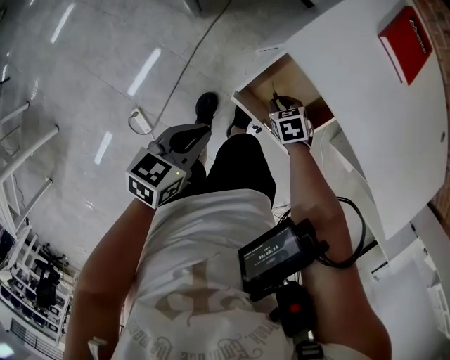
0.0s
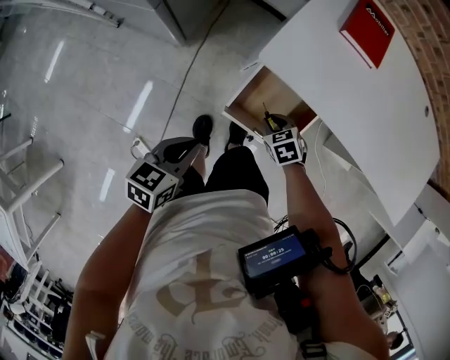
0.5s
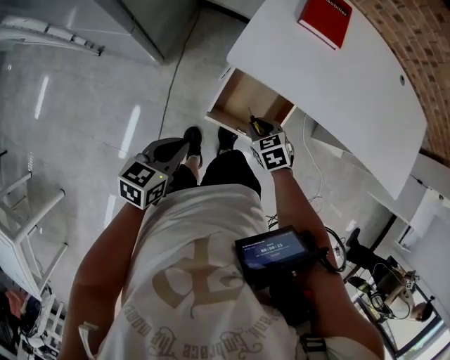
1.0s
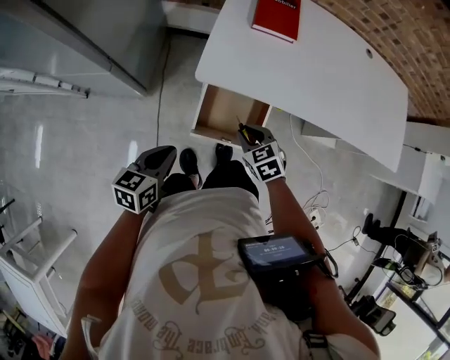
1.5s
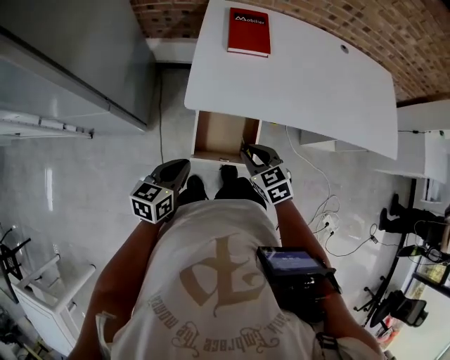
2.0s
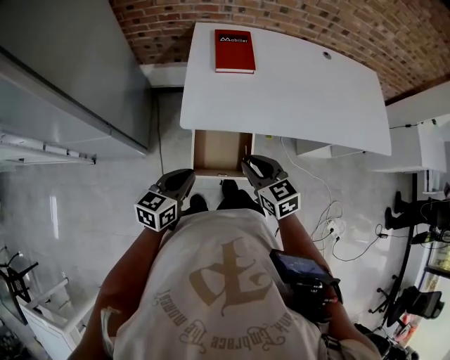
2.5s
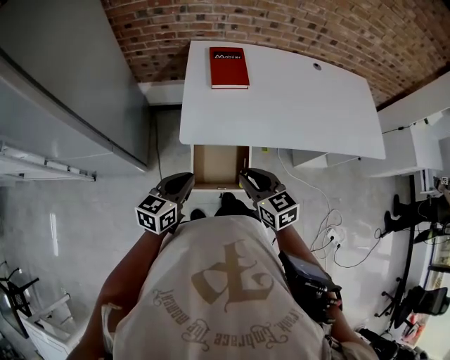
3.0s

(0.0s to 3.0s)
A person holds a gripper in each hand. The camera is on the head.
0.0s - 1.5s: The right gripper shifts roughly 20 cm upward, and swivels some 30 degrees. Meanwhile the left gripper shifts roughly 10 cm upward.
1.5s - 3.0s: The left gripper heads upward, to the right and forward, covering approximately 10 cm, and swivels about 20 degrees. The right gripper moves upward, some 15 cm, and swivels approximately 30 degrees.

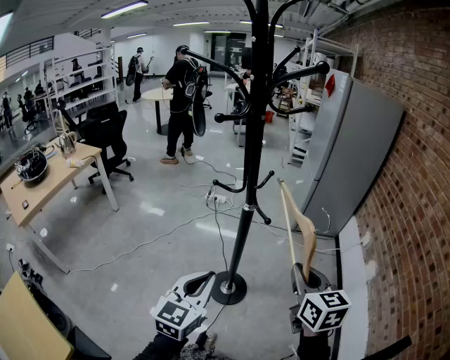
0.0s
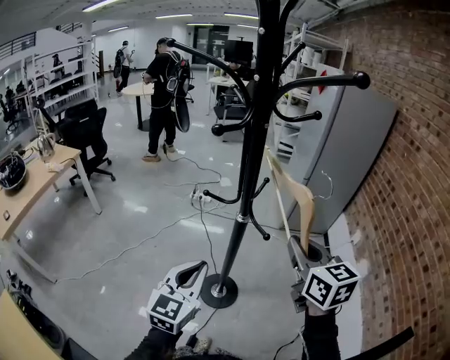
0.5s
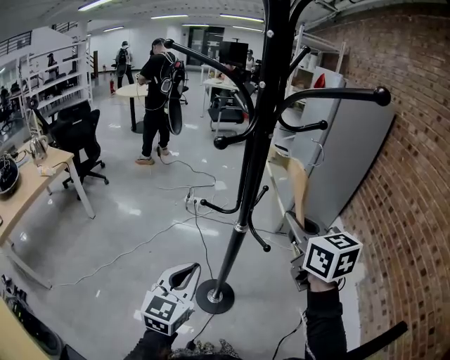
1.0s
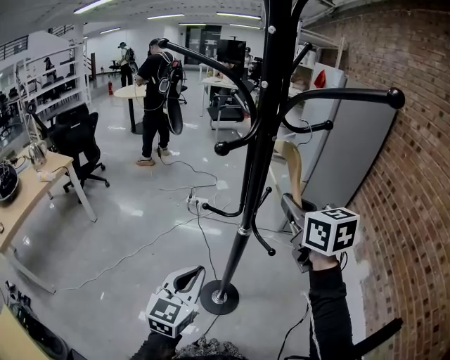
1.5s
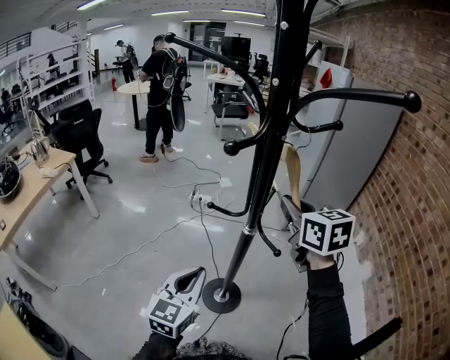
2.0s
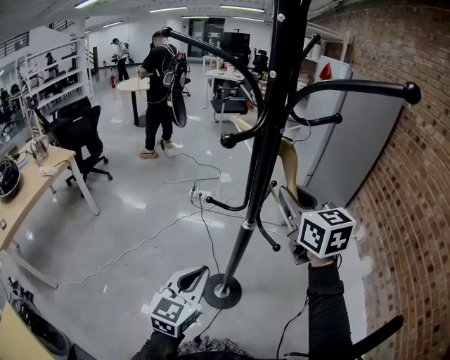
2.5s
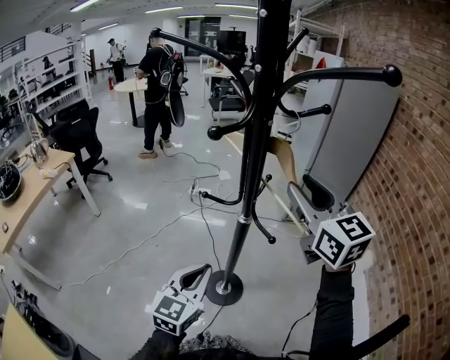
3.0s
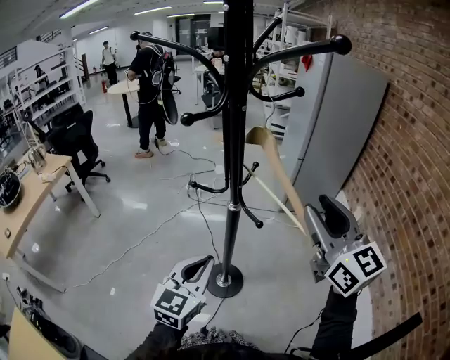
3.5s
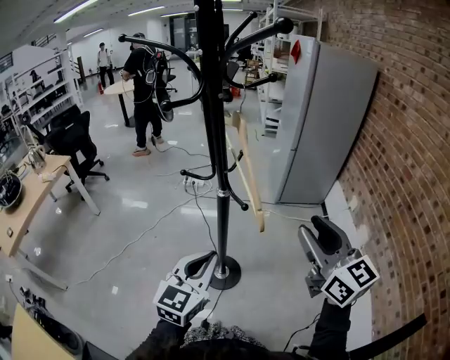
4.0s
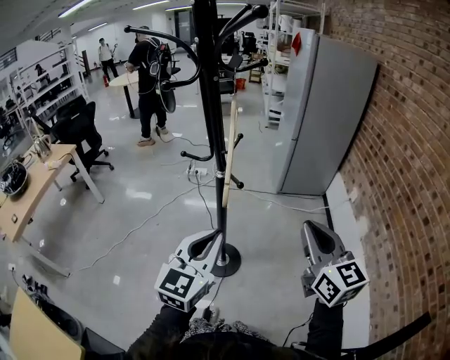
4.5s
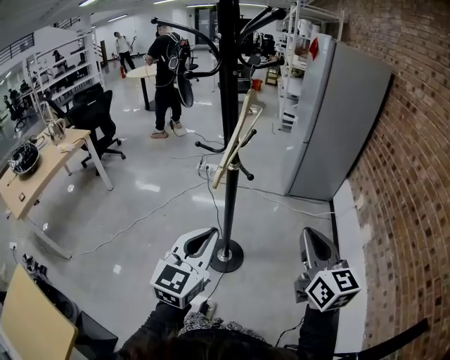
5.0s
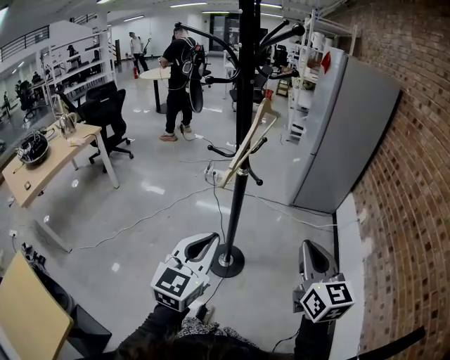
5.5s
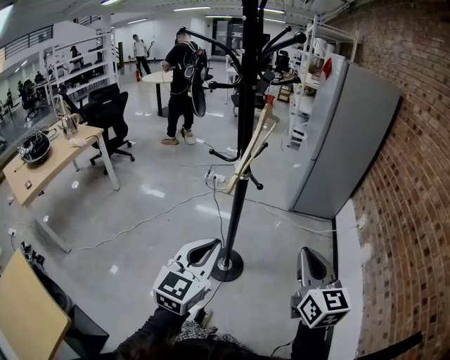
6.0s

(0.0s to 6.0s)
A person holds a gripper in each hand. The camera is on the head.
0.0s - 2.0s: The left gripper moves forward and to the left, some 15 cm, while the right gripper heads forward, to the left and upward, covering some 30 cm.
2.0s - 4.0s: The right gripper goes about 25 cm backward and to the right, swivels approximately 20 degrees, and opens up; the left gripper goes some 15 cm to the right and backward.
4.0s - 6.0s: The right gripper moves backward and downward, some 10 cm, and closes its fingers. The left gripper shifts about 10 cm backward.

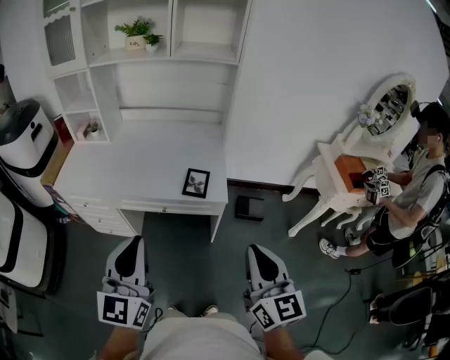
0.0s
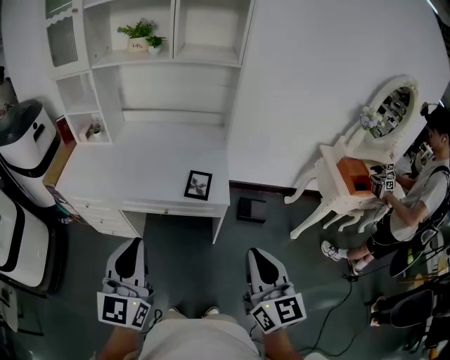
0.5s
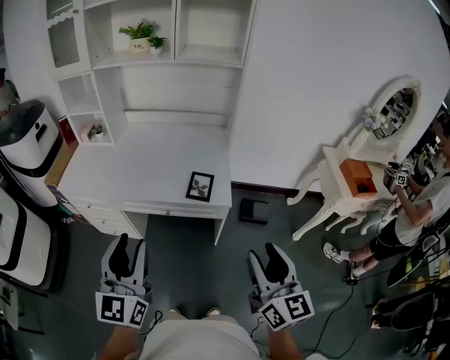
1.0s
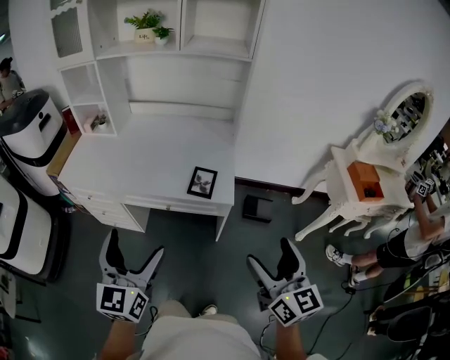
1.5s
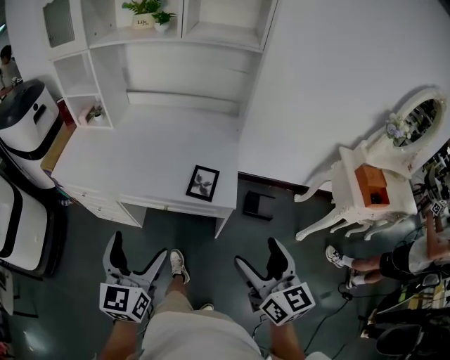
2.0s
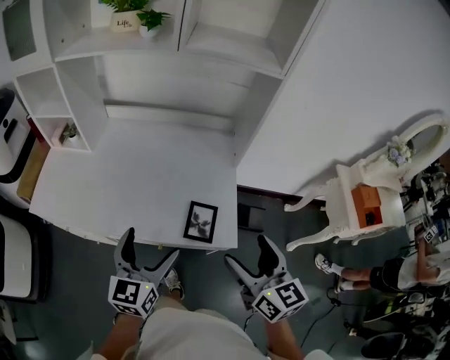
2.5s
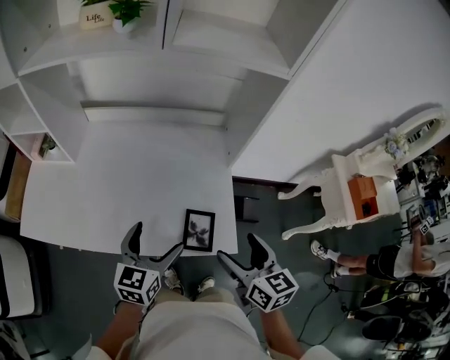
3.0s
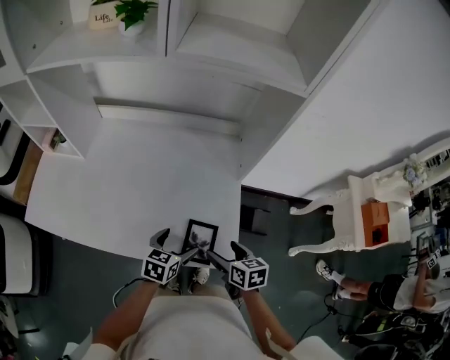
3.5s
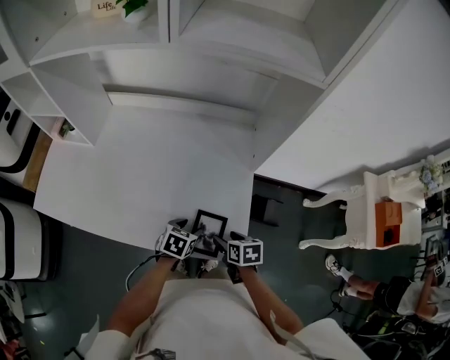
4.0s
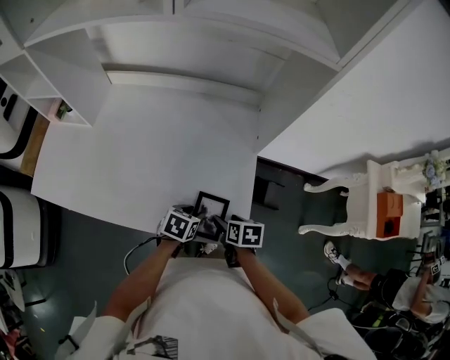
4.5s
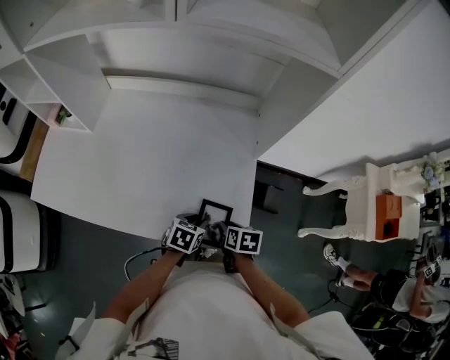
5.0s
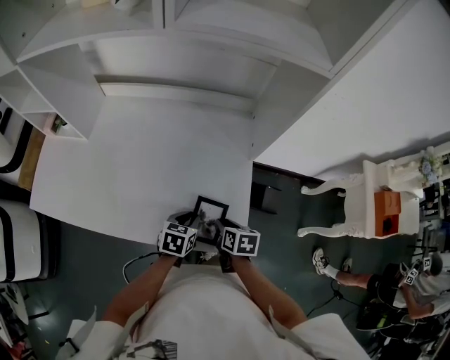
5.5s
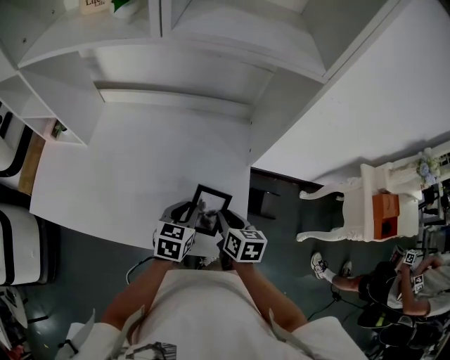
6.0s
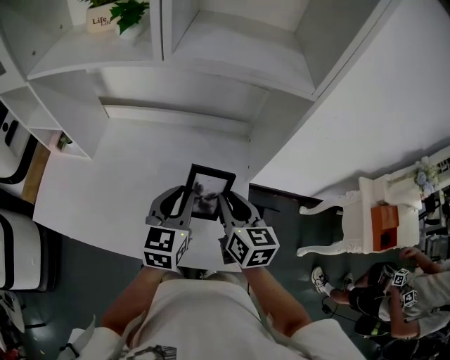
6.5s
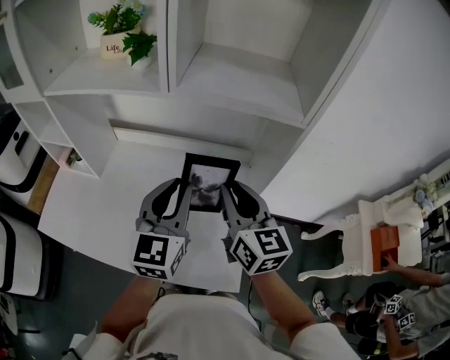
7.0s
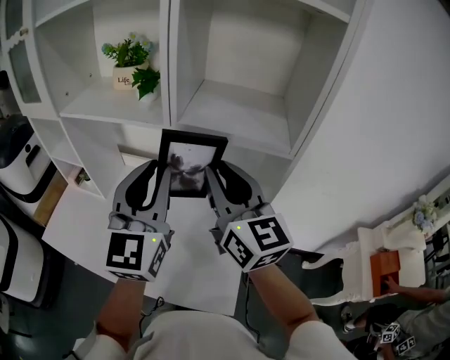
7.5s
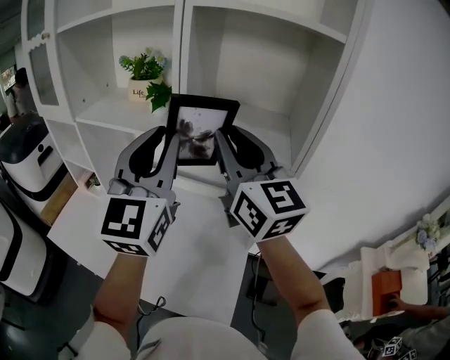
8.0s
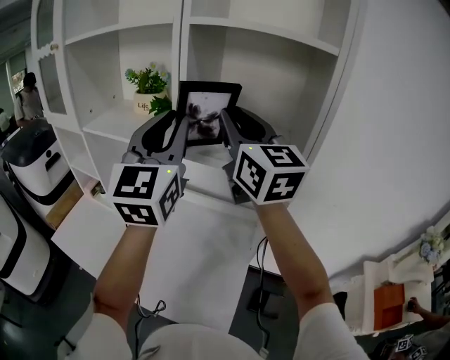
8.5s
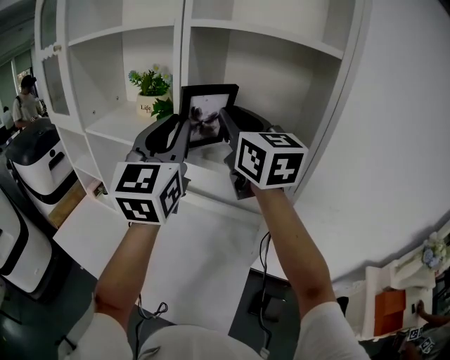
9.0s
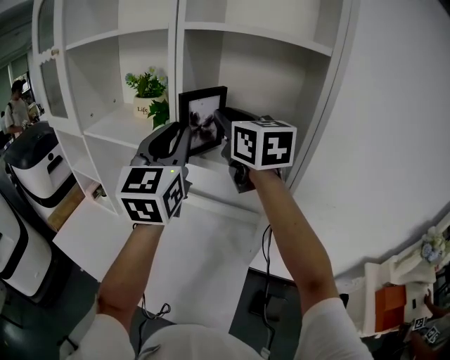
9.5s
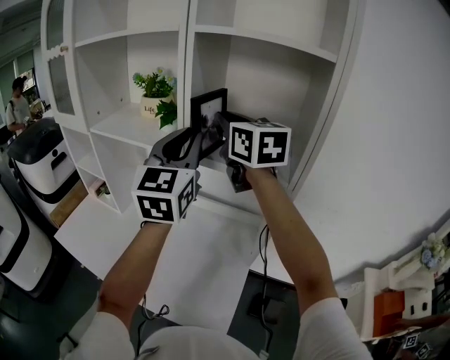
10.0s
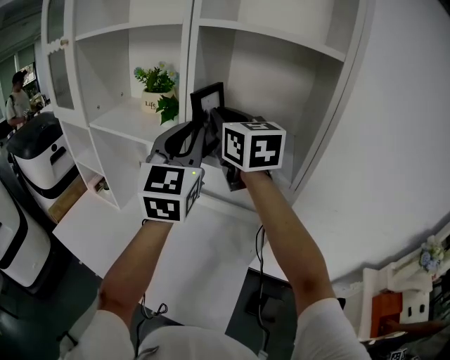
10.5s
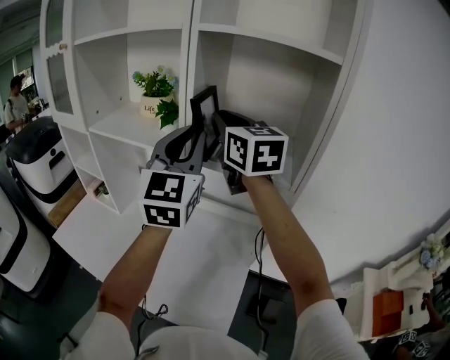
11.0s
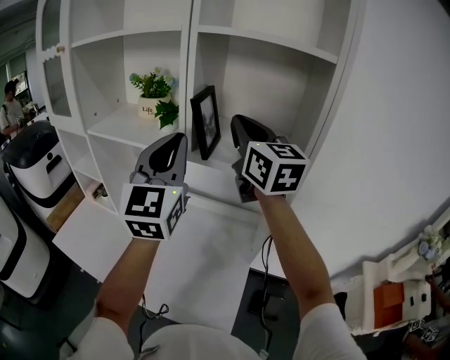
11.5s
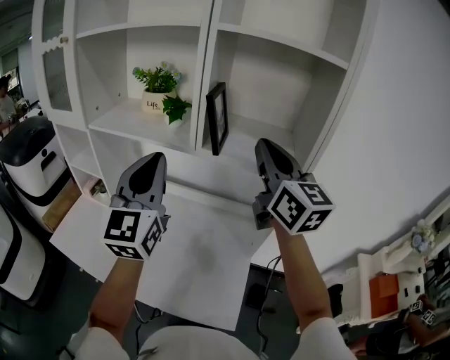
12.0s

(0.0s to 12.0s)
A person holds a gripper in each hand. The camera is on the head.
0.0s - 2.0s: Both grippers move forward and downward, about 15 cm. The right gripper opens. Meanwhile the left gripper opens.
2.0s - 4.0s: Both grippers travel together forward and downward, approximately 50 cm. The left gripper angles its fingers downward, by some 50 degrees, and closes; the right gripper points its fingers about 50 degrees further downward.
4.0s - 6.0s: Both grippers move upward and forward, roughly 10 cm. The left gripper changes its angle by about 20 degrees, while the right gripper closes up.
6.0s - 8.0s: Both grippers travel together upward, some 50 cm. The left gripper tilts its fingers some 60 degrees upward; the right gripper points its fingers about 50 degrees further upward.
8.0s - 10.0s: The left gripper is displaced forward by about 5 cm; the right gripper travels forward by about 10 cm.
10.0s - 12.0s: The right gripper travels backward by roughly 10 cm. The left gripper goes some 10 cm to the left and backward.

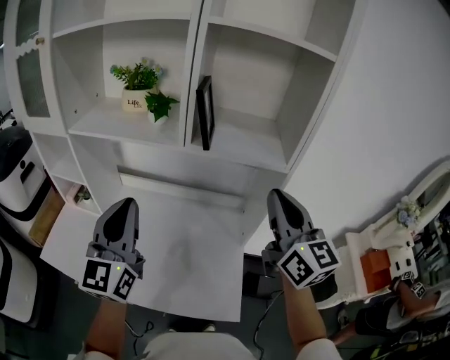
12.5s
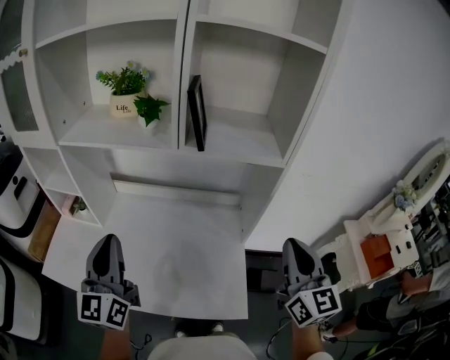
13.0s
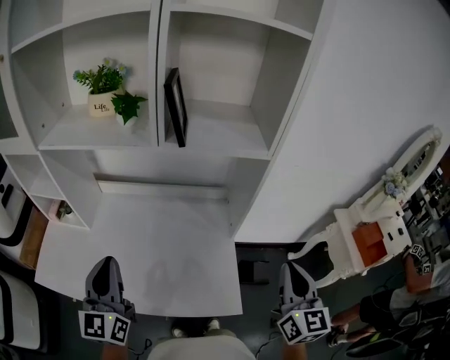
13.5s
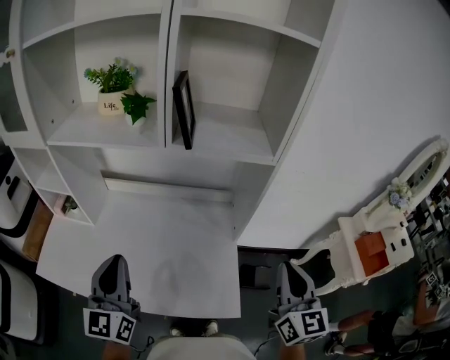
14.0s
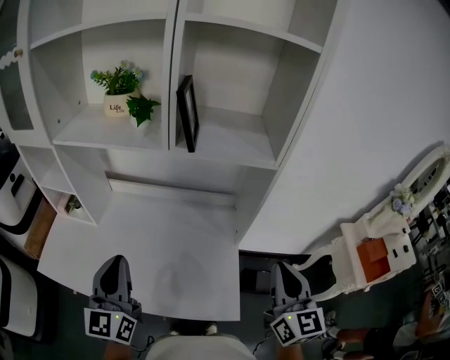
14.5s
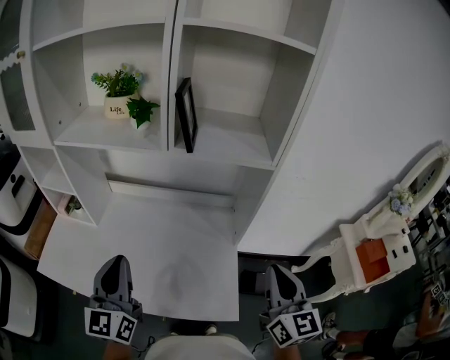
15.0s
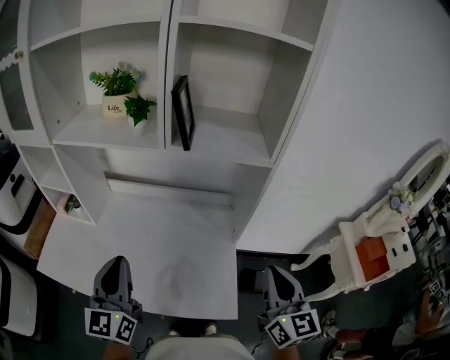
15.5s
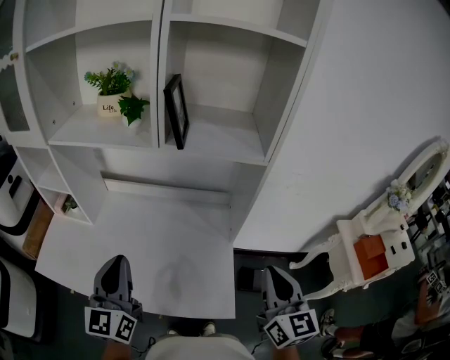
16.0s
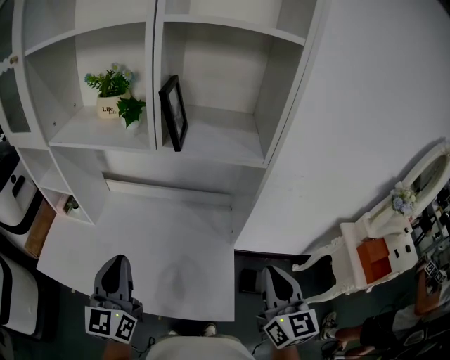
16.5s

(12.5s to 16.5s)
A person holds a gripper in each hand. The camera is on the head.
12.5s - 14.5s: The left gripper travels downward and backward by some 10 cm; the right gripper shifts approximately 20 cm downward, backward and to the right.
14.5s - 16.5s: There are only small adjustments of the grippers.

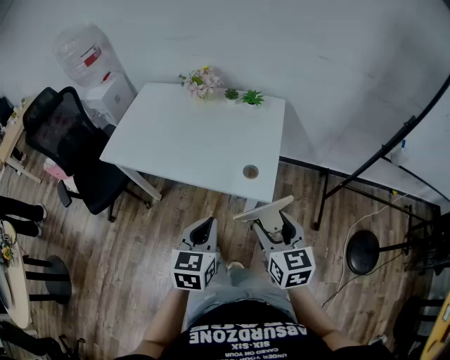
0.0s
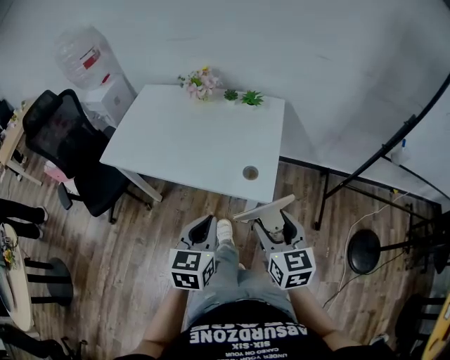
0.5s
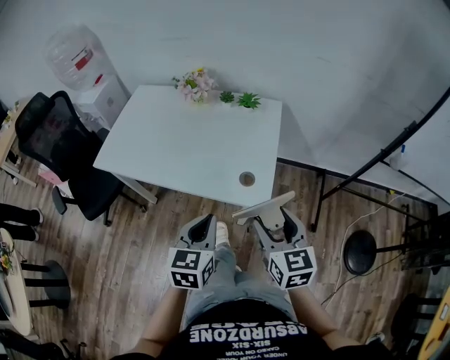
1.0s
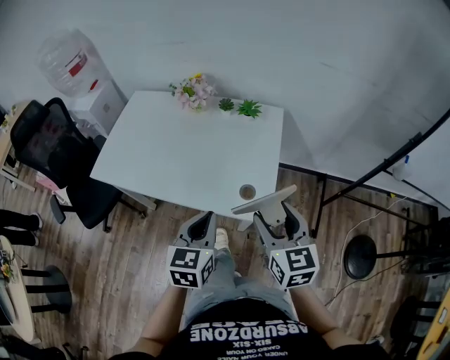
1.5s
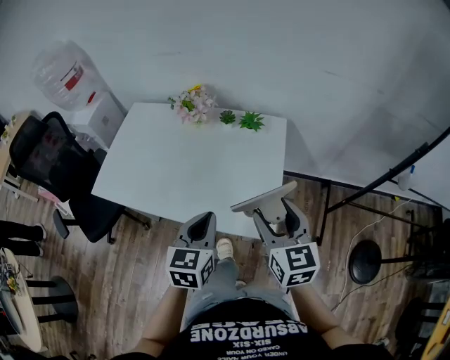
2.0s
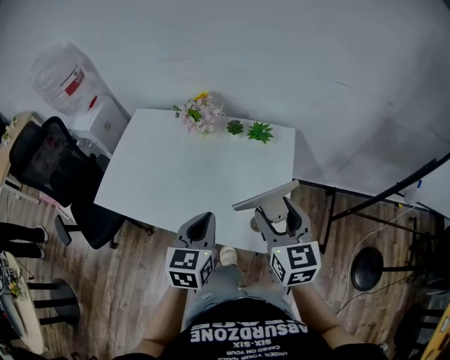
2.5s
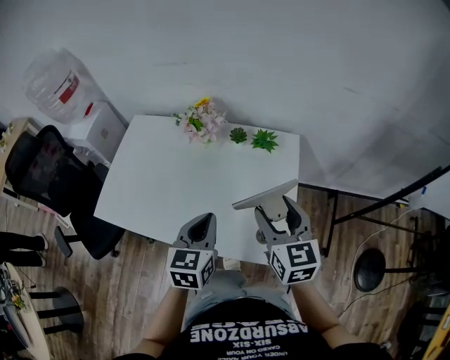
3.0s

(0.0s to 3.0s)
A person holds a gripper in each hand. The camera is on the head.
0.0s - 1.5s: The grippers both shift forward by approximately 10 cm.
1.5s - 3.0s: The two grippers go some 20 cm forward.
